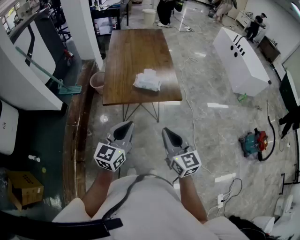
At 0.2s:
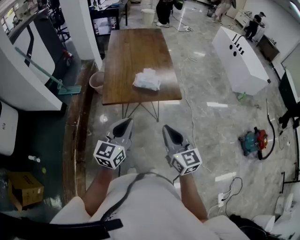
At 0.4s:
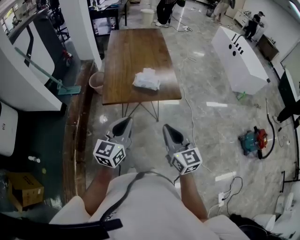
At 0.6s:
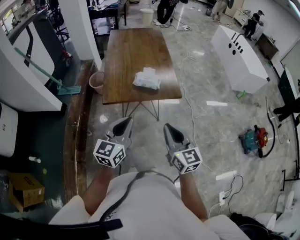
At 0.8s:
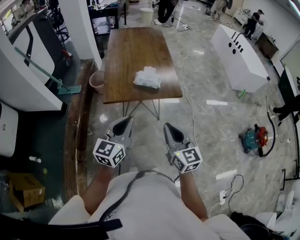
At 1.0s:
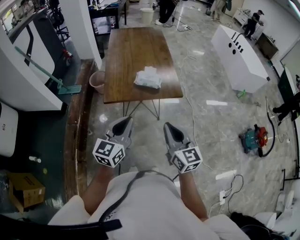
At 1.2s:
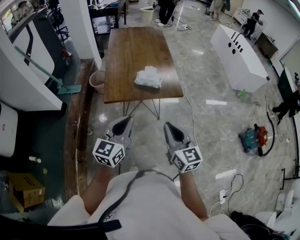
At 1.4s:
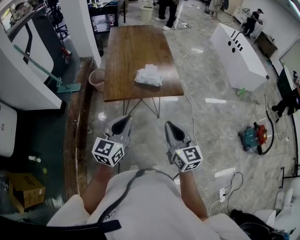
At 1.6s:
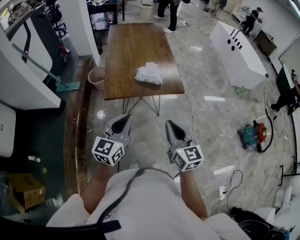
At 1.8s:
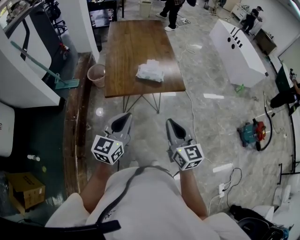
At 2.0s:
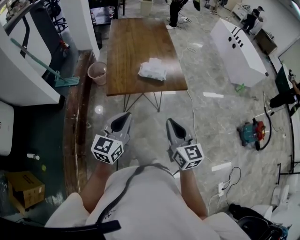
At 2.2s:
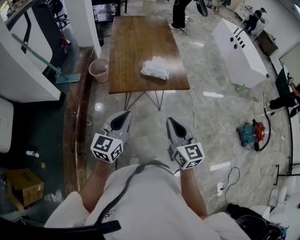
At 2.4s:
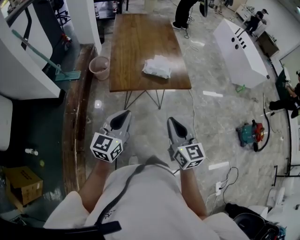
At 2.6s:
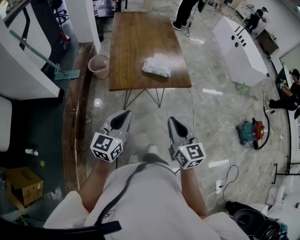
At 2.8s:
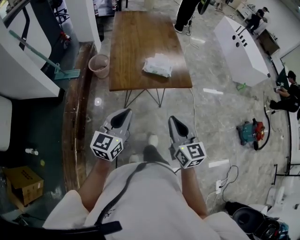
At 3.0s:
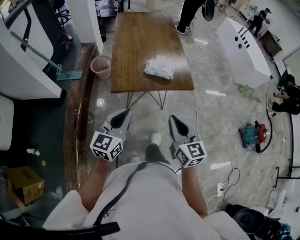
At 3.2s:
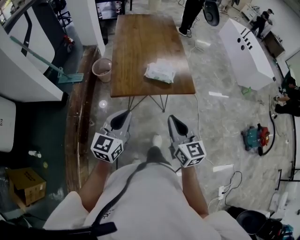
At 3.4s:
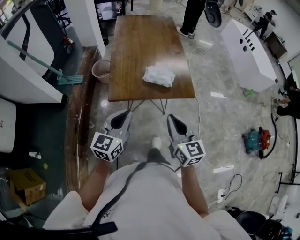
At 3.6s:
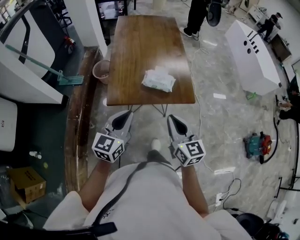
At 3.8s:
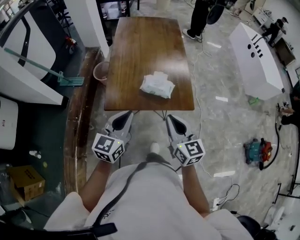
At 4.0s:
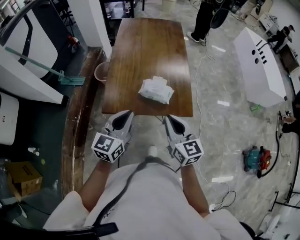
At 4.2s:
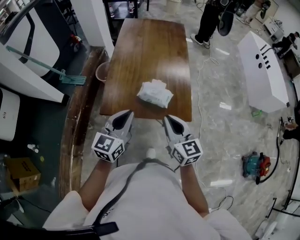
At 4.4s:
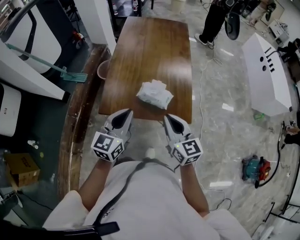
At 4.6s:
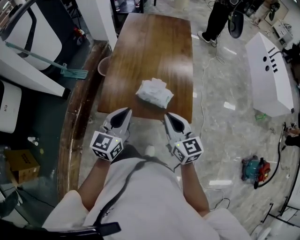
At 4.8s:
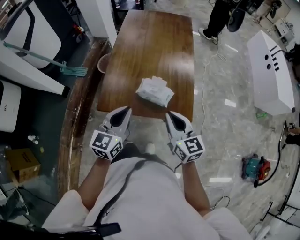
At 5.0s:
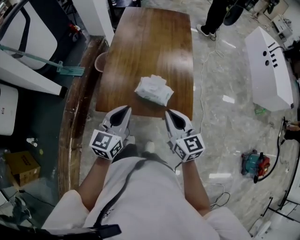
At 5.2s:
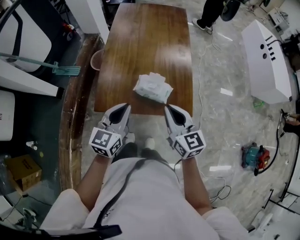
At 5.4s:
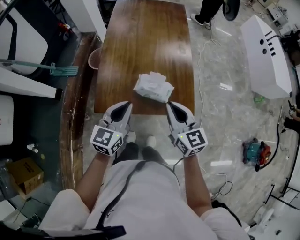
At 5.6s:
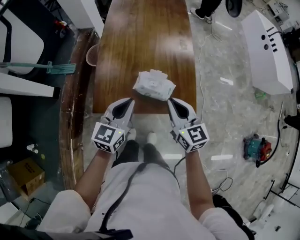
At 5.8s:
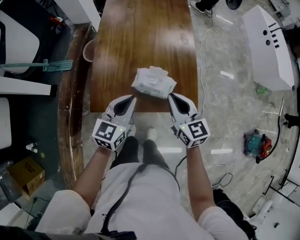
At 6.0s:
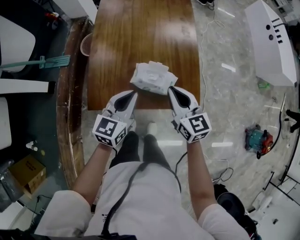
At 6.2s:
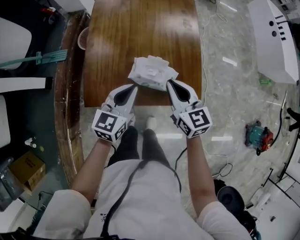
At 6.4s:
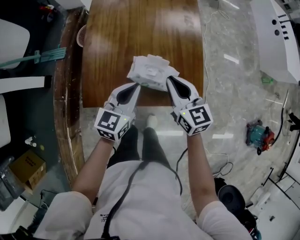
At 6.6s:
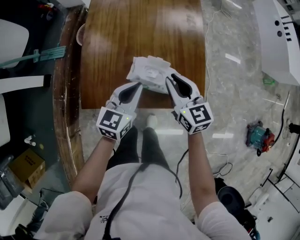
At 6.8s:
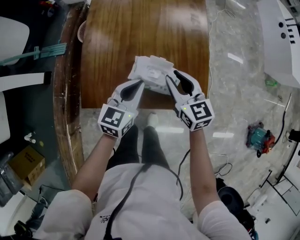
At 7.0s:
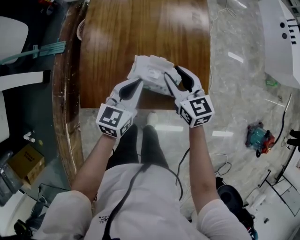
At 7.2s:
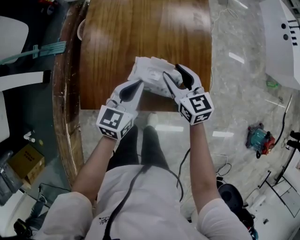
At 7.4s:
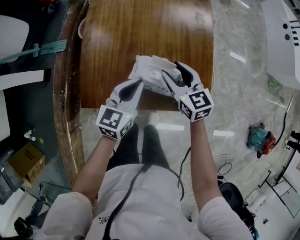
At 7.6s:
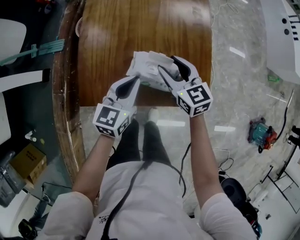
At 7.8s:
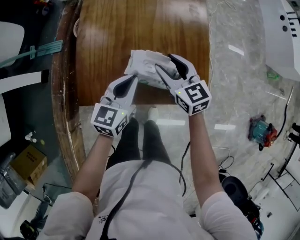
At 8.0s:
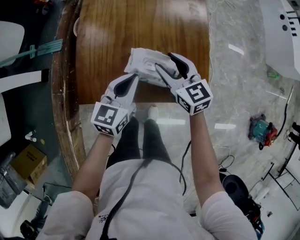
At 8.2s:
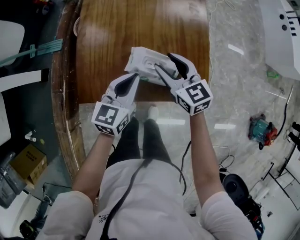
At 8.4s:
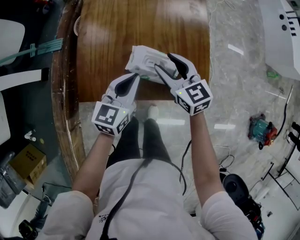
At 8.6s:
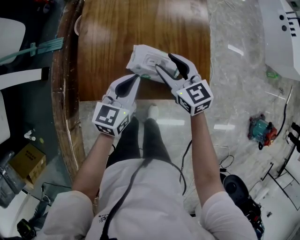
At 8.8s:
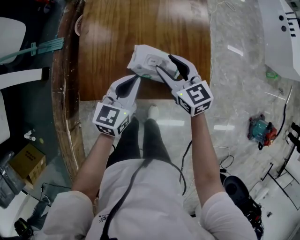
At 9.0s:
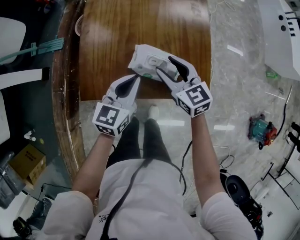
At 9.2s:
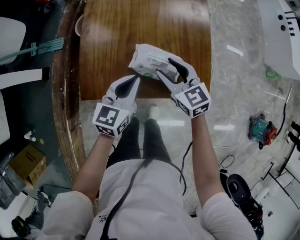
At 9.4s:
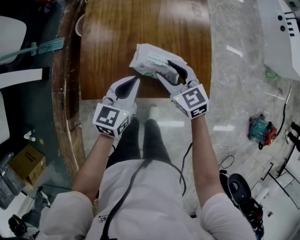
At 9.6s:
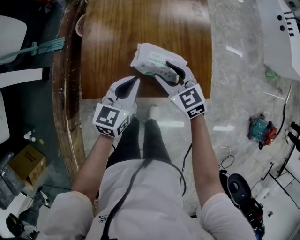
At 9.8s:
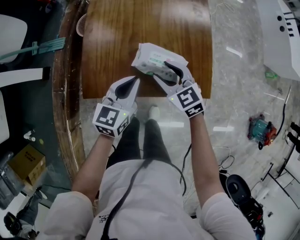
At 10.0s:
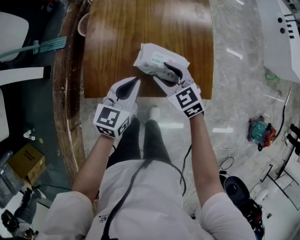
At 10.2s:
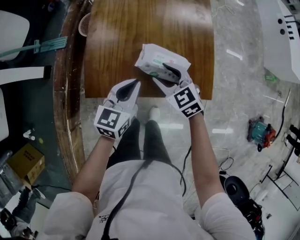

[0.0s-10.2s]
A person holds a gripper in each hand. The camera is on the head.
0.0s to 1.4s: The grippers stay close to where they were, moving slightly.
1.4s to 3.0s: Both grippers travel together to the left, some 5 cm.
3.0s to 4.4s: The left gripper heads forward and to the right, covering some 25 cm; the right gripper travels forward by roughly 25 cm.
4.4s to 5.8s: Both grippers travel together forward and downward, roughly 15 cm.
5.8s to 7.2s: Both grippers travel together downward and forward, about 15 cm. The right gripper opens.
7.2s to 8.8s: The grippers stay close to where they were, moving slightly.
8.8s to 10.2s: The right gripper moves to the left, about 5 cm, and changes its angle by about 20 degrees.

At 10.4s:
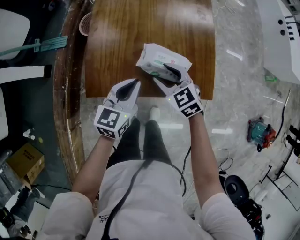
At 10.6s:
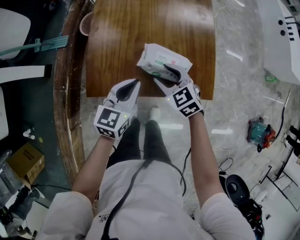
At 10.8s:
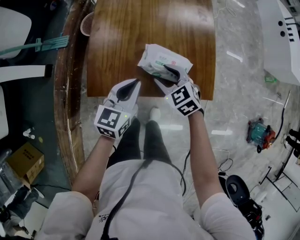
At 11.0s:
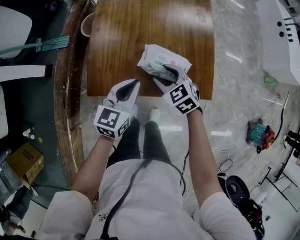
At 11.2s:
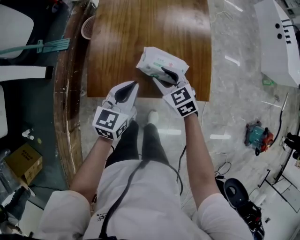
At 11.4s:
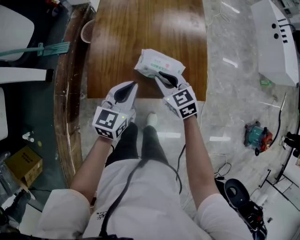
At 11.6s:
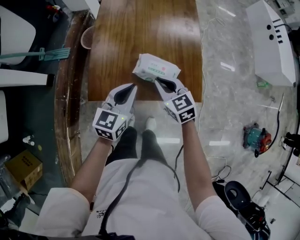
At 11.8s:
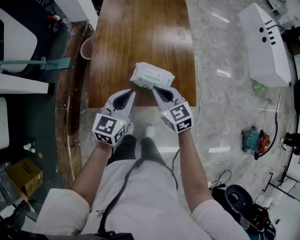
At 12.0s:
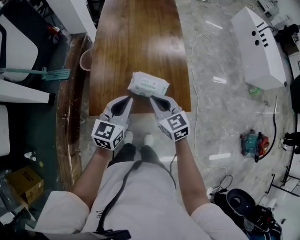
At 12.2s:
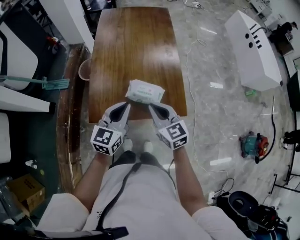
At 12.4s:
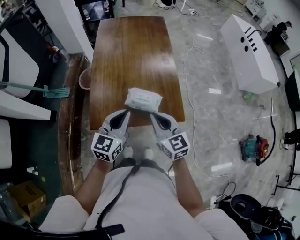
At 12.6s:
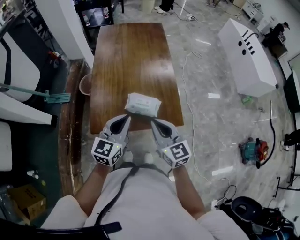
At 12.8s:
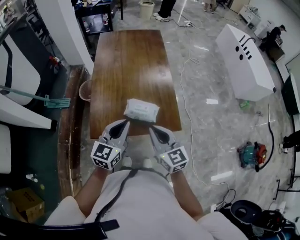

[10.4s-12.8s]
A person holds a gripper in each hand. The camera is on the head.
10.4s to 11.6s: The grippers both shift upward by some 5 cm. The right gripper closes up.
11.6s to 12.8s: The grippers both shift upward and backward by roughly 15 cm. The right gripper rotates roughly 30 degrees.

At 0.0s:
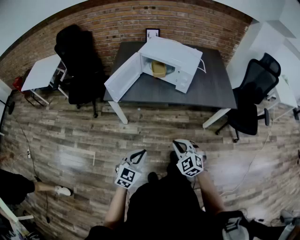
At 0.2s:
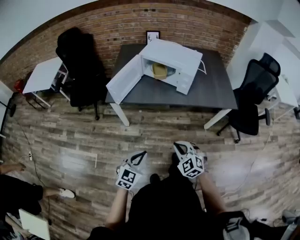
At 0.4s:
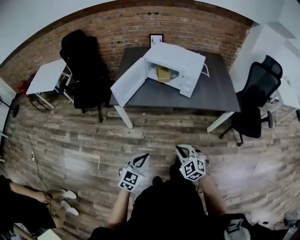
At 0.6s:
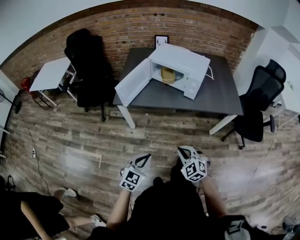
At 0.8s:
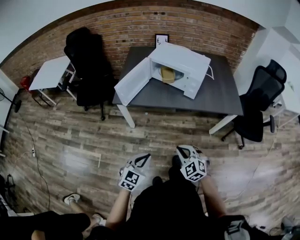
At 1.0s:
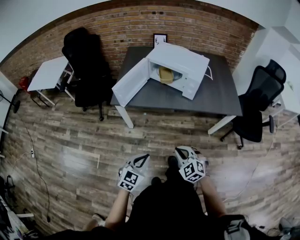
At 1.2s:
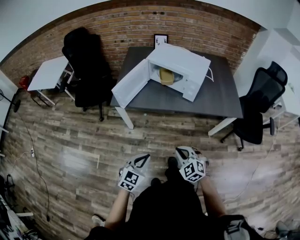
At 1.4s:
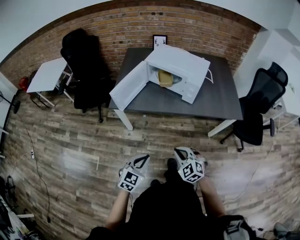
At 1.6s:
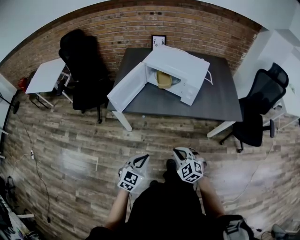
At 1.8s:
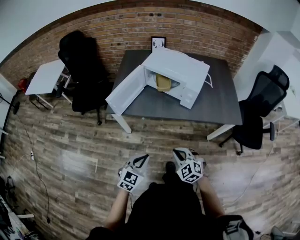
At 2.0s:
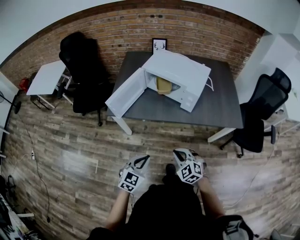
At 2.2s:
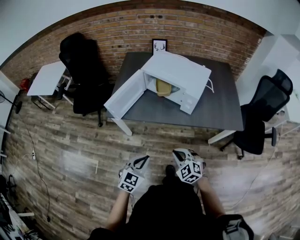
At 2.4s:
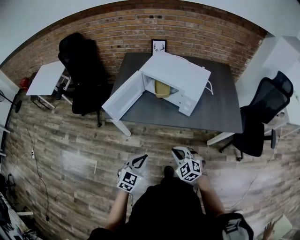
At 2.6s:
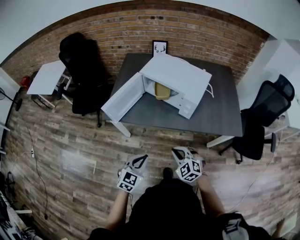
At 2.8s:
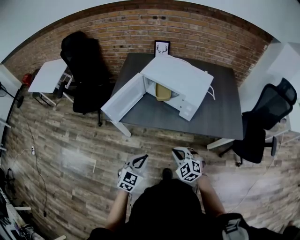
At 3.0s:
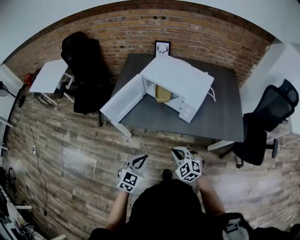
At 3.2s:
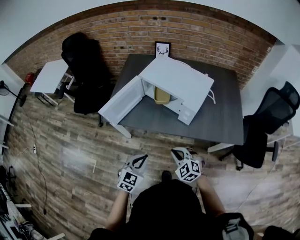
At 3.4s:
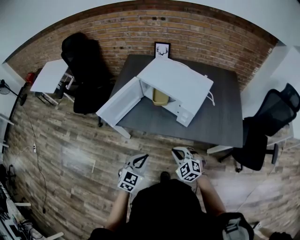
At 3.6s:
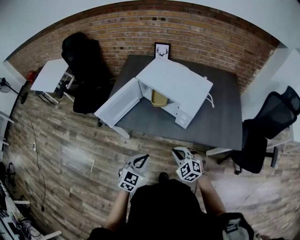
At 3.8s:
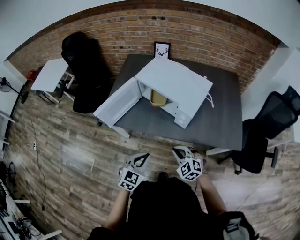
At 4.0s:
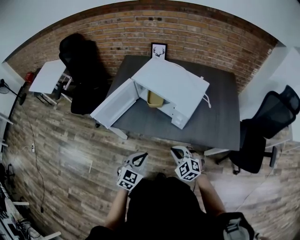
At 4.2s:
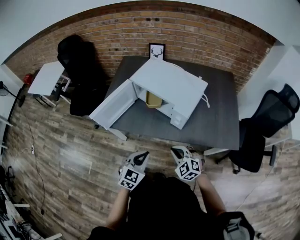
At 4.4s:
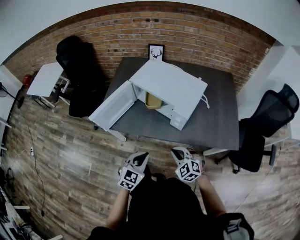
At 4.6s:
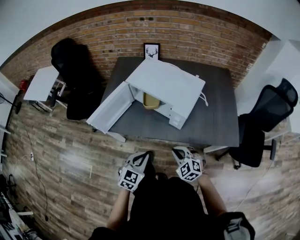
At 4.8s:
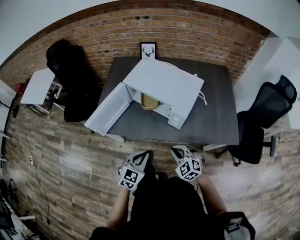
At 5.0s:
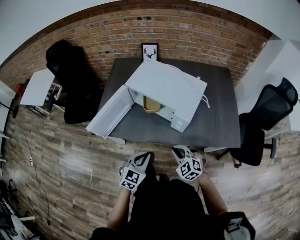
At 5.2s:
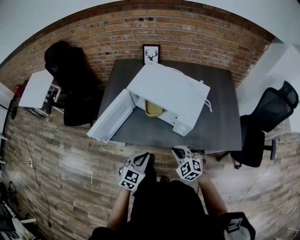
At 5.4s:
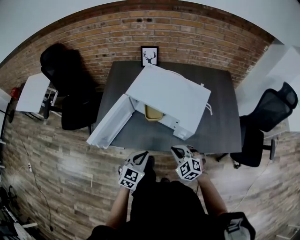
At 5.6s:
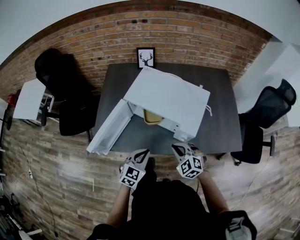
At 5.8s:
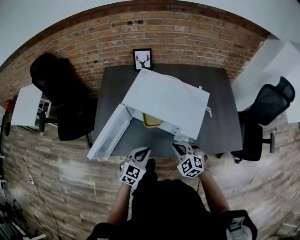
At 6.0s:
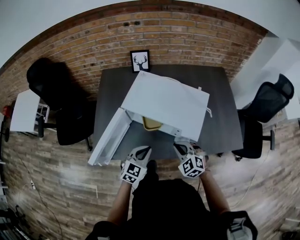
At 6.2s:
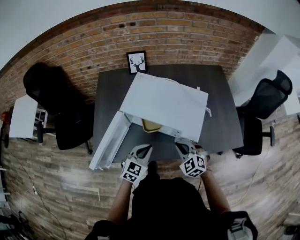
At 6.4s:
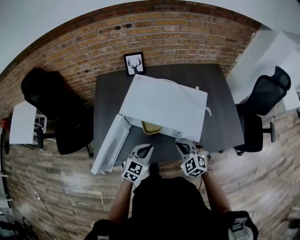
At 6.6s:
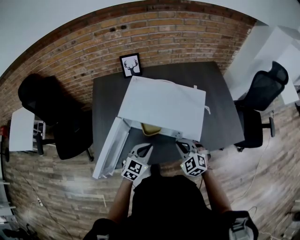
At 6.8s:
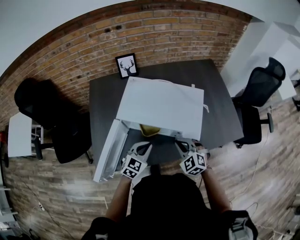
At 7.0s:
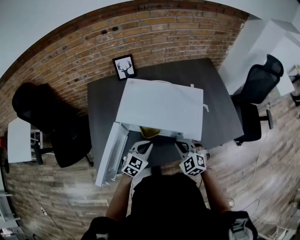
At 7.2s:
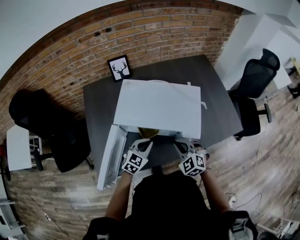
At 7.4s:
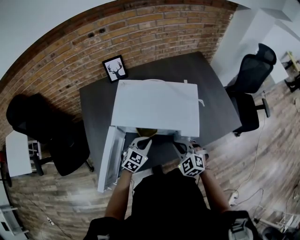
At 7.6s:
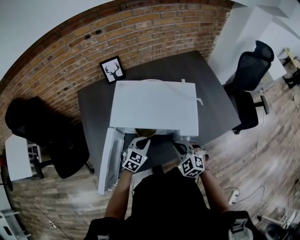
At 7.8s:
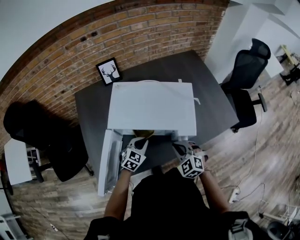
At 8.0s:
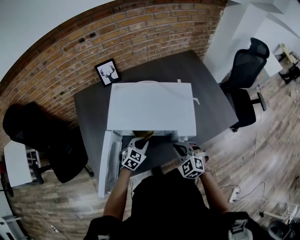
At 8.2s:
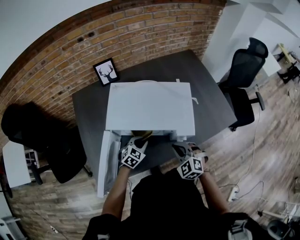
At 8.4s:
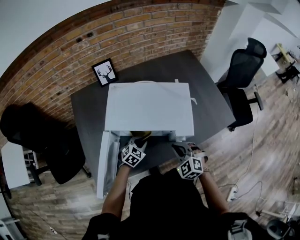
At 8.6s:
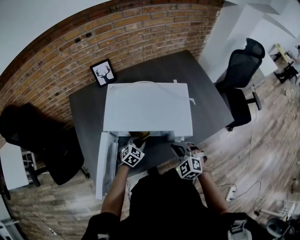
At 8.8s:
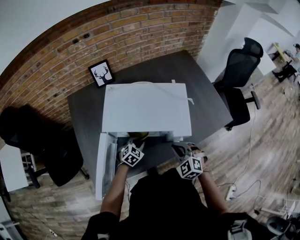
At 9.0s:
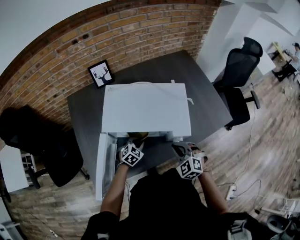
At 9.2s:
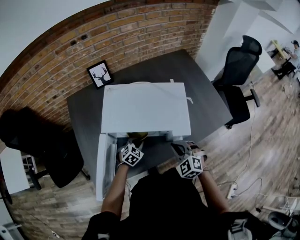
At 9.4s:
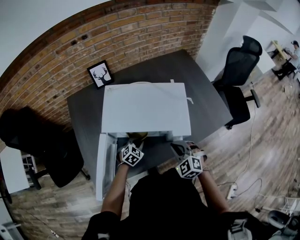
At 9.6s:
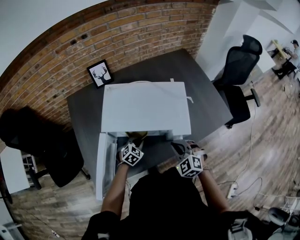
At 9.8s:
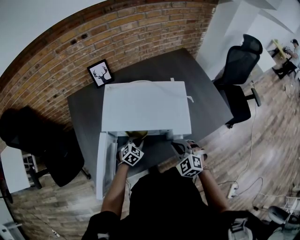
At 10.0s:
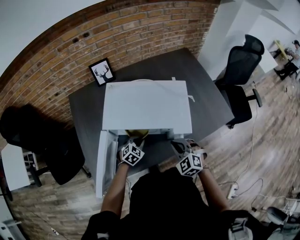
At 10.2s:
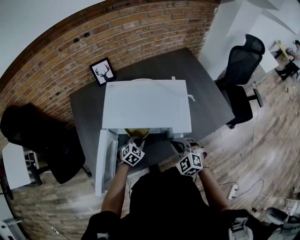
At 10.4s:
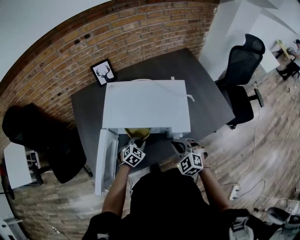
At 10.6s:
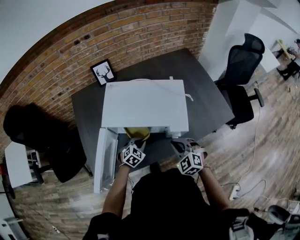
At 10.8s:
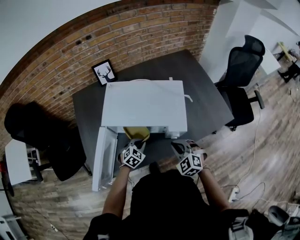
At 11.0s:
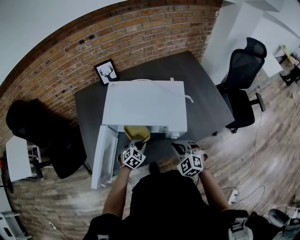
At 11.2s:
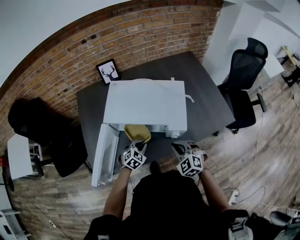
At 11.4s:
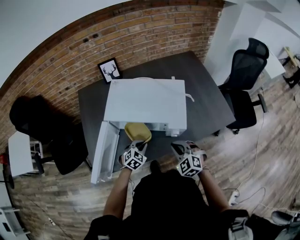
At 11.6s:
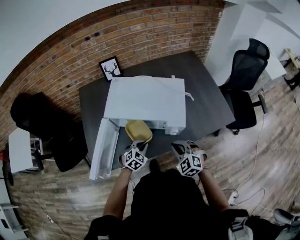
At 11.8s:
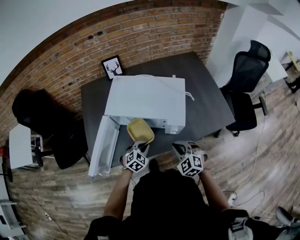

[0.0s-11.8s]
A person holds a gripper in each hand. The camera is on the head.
0.0s to 1.4s: The grippers make only small movements.
1.4s to 3.0s: The right gripper heads forward, covering roughly 15 cm, while the left gripper travels forward and to the right by approximately 15 cm.
3.0s to 4.4s: The two grippers go roughly 10 cm to the right and forward.
4.4s to 6.0s: The two grippers go about 20 cm forward.
6.0s to 7.4s: The left gripper moves forward and downward, roughly 10 cm, and turns by roughly 20 degrees.
7.4s to 8.8s: The left gripper heads downward, covering about 10 cm.
8.8s to 10.4s: The grippers move only a little.
10.4s to 11.8s: The right gripper heads backward, covering about 5 cm. Meanwhile the left gripper is displaced backward and upward by some 10 cm.
